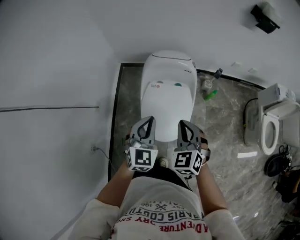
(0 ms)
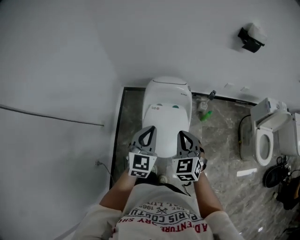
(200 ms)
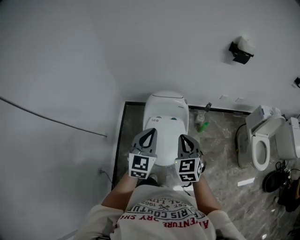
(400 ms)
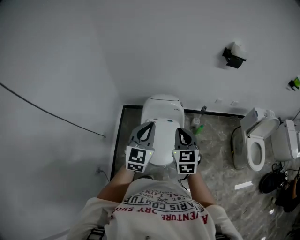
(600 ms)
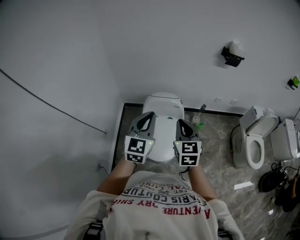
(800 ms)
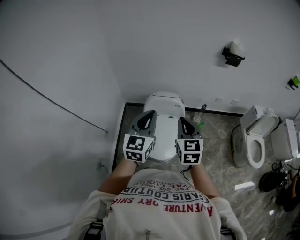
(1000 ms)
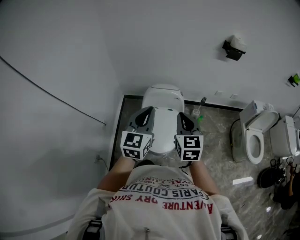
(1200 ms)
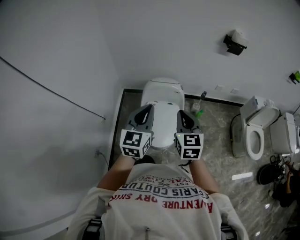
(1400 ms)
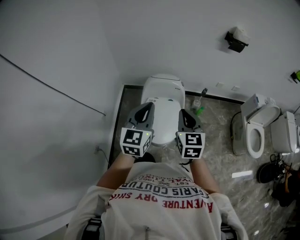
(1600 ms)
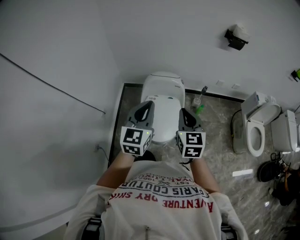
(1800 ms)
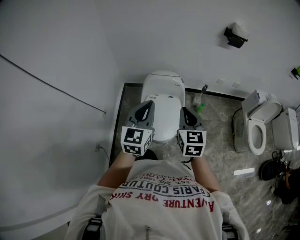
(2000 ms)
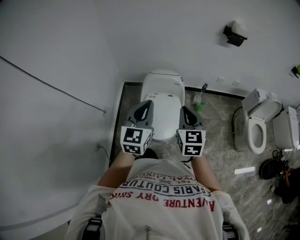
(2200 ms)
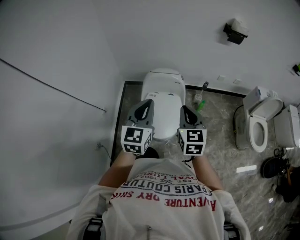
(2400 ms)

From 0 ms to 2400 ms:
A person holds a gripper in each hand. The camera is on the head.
From 0 ms to 1200 ms: Both grippers travel together upward, about 25 cm. The left gripper changes its angle by approximately 20 degrees; the right gripper rotates roughly 30 degrees.
From 1200 ms to 2400 ms: The right gripper ends up about 5 cm from where it was.

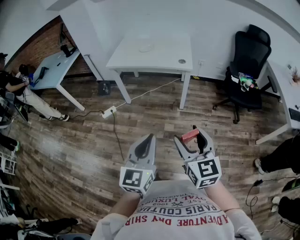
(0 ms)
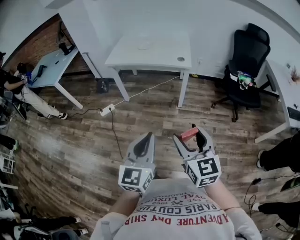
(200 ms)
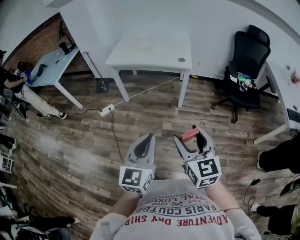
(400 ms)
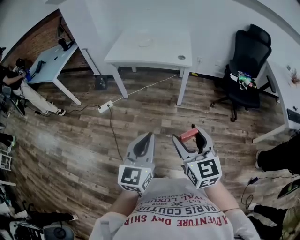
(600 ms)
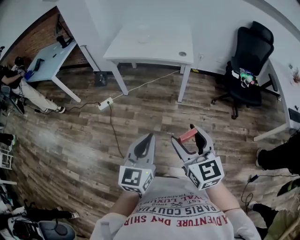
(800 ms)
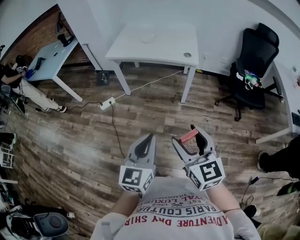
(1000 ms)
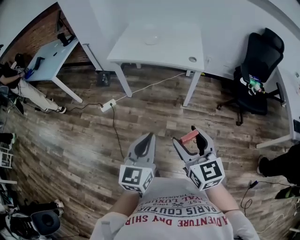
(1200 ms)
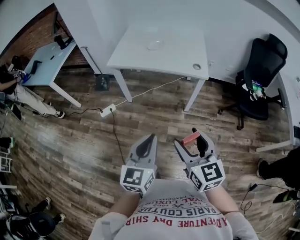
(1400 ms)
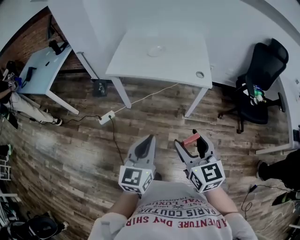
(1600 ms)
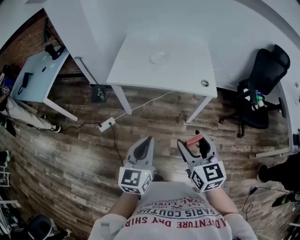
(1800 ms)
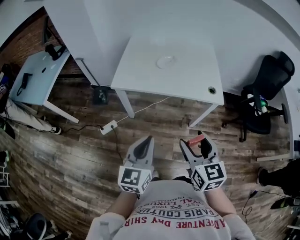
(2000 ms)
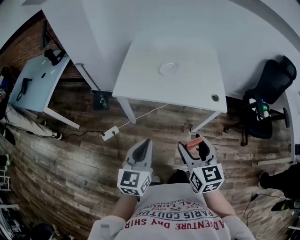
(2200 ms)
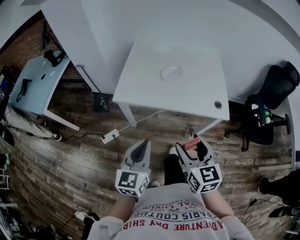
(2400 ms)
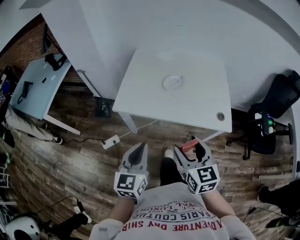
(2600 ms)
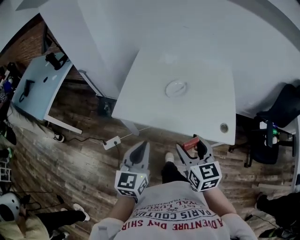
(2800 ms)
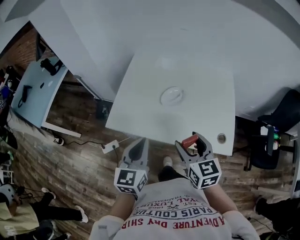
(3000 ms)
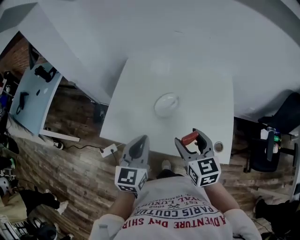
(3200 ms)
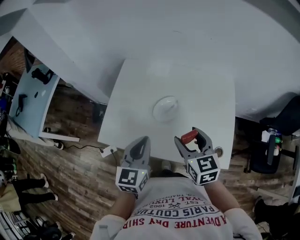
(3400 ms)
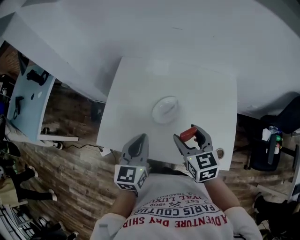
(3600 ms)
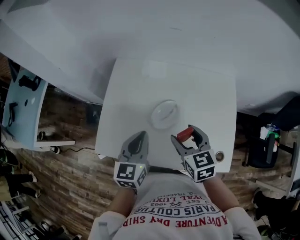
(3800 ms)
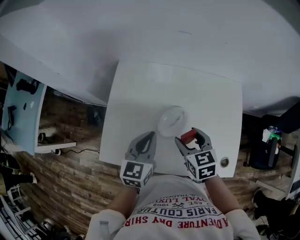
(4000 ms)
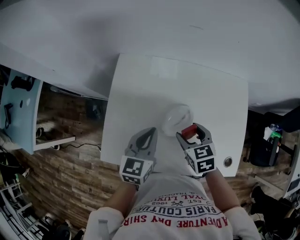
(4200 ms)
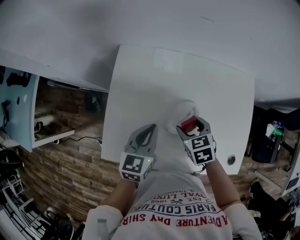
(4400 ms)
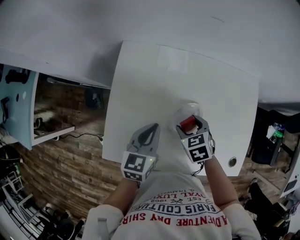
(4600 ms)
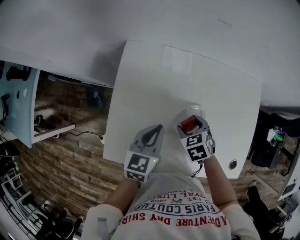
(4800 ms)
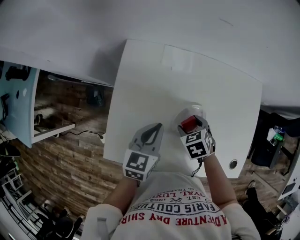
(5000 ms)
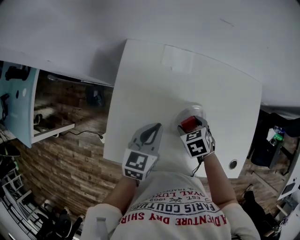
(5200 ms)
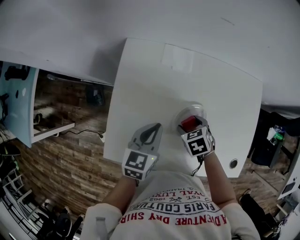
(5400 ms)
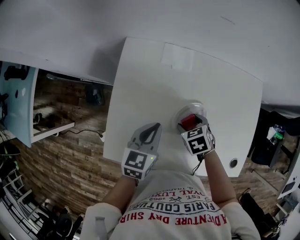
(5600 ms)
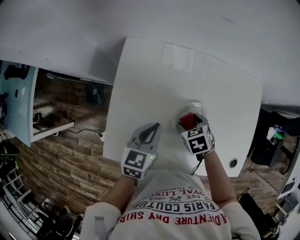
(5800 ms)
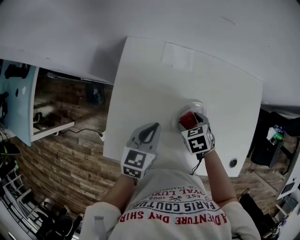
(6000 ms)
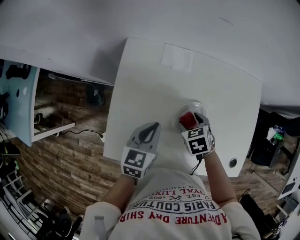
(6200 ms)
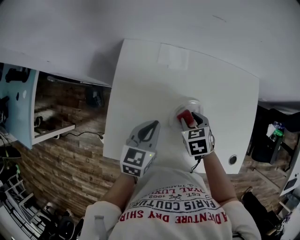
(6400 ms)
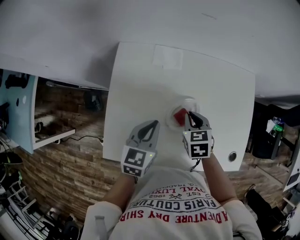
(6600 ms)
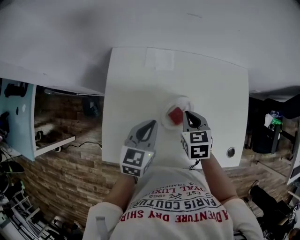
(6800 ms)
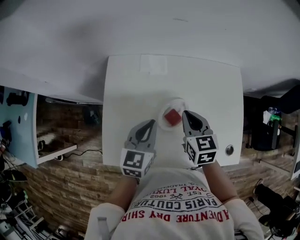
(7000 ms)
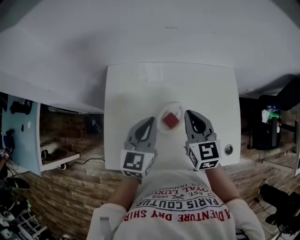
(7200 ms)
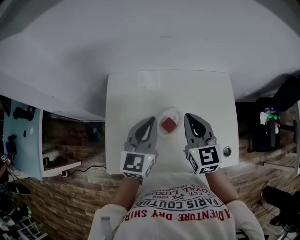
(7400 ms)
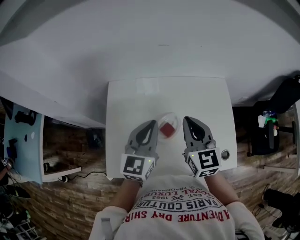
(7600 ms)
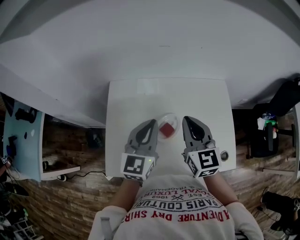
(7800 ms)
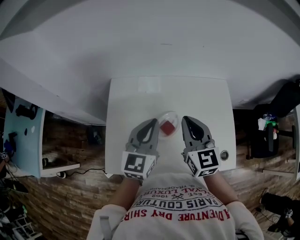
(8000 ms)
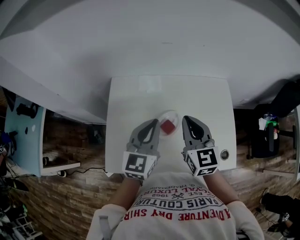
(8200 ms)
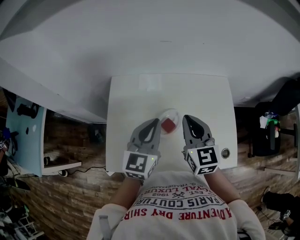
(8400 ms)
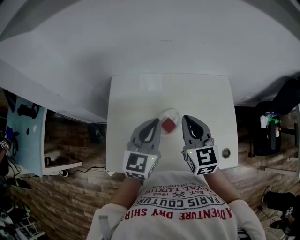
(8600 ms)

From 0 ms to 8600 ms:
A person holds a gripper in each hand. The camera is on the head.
From 0 ms to 1400 ms: The grippers both shift forward and to the left by some 20 cm.
From 1400 ms to 2800 ms: The pair of grippers is taken forward, roughly 50 cm.
From 2800 ms to 4400 ms: The left gripper travels forward by some 35 cm, and changes its angle by some 20 degrees. The right gripper shifts approximately 40 cm forward and downward, and tips its fingers downward by roughly 30 degrees.
From 4400 ms to 5800 ms: The right gripper shifts about 5 cm downward.
From 5800 ms to 7200 ms: The left gripper moves upward and to the right, some 15 cm, and rotates about 20 degrees. Meanwhile the right gripper heads upward, covering roughly 20 cm, tips its fingers upward by some 50 degrees, and closes up.
From 7200 ms to 8600 ms: Both grippers travel together upward, roughly 5 cm.

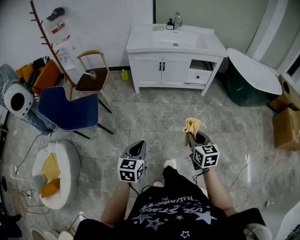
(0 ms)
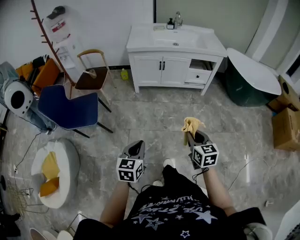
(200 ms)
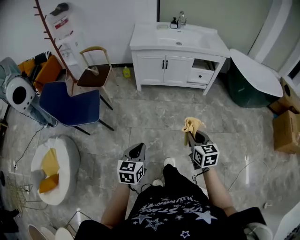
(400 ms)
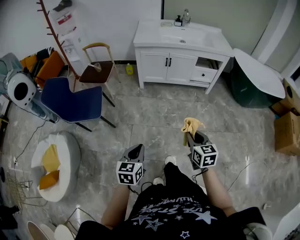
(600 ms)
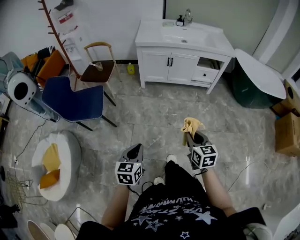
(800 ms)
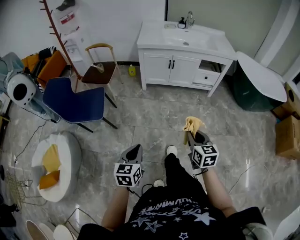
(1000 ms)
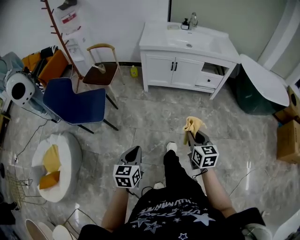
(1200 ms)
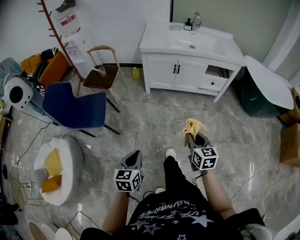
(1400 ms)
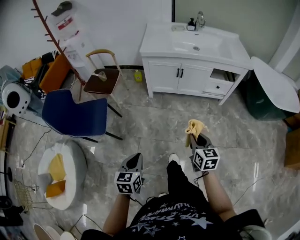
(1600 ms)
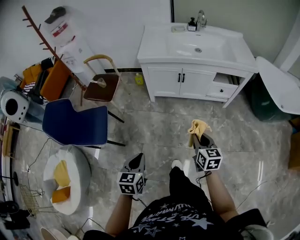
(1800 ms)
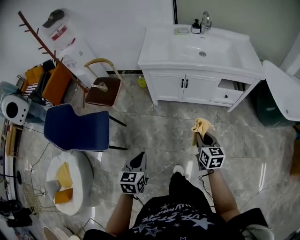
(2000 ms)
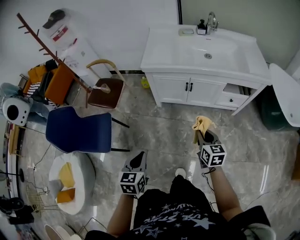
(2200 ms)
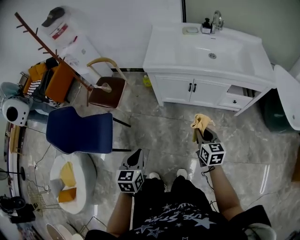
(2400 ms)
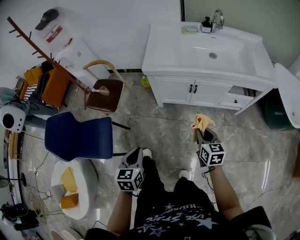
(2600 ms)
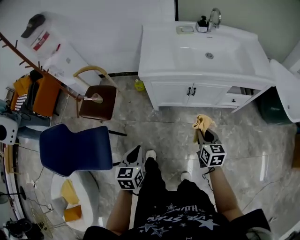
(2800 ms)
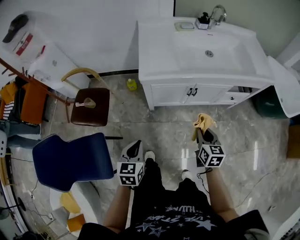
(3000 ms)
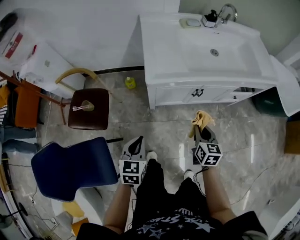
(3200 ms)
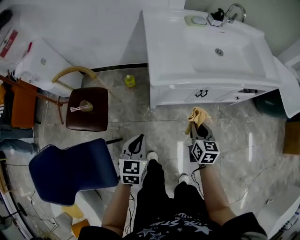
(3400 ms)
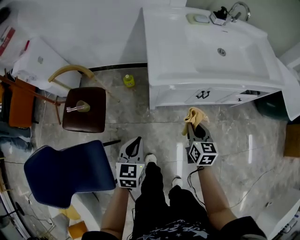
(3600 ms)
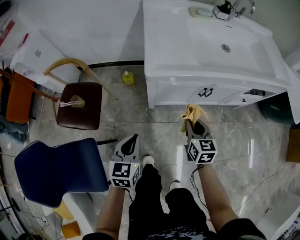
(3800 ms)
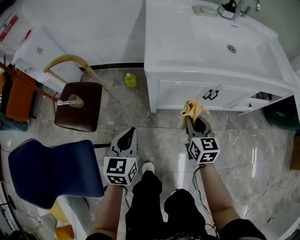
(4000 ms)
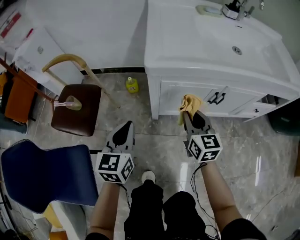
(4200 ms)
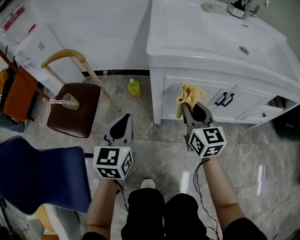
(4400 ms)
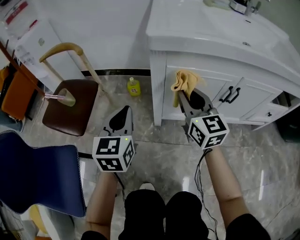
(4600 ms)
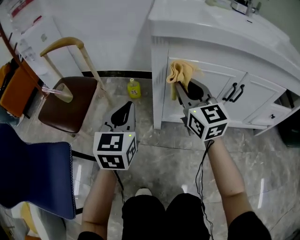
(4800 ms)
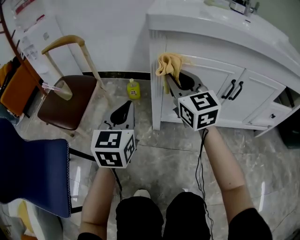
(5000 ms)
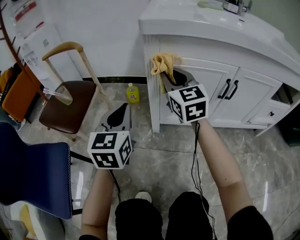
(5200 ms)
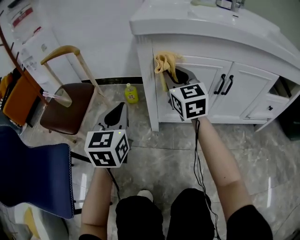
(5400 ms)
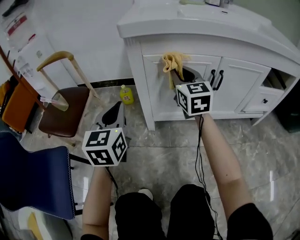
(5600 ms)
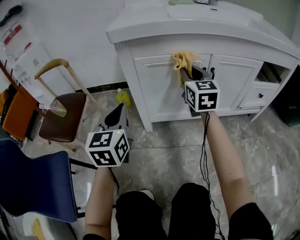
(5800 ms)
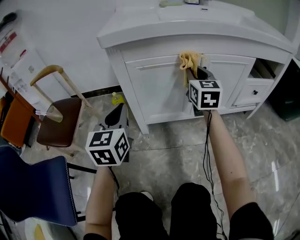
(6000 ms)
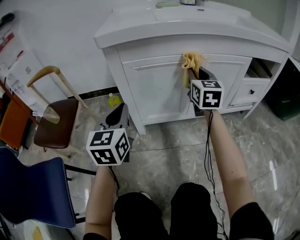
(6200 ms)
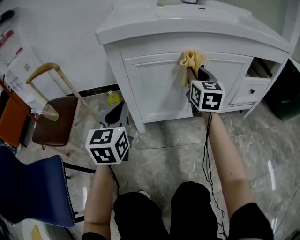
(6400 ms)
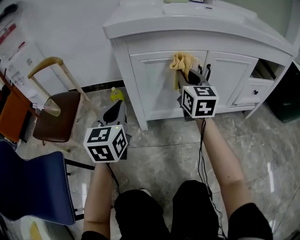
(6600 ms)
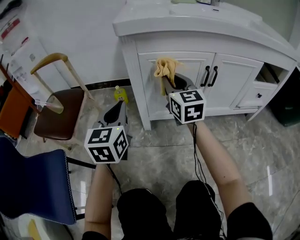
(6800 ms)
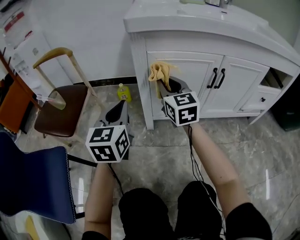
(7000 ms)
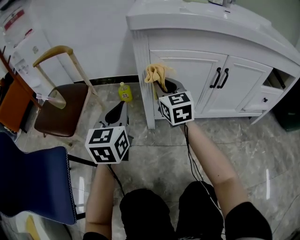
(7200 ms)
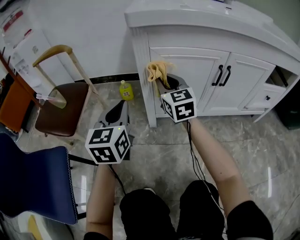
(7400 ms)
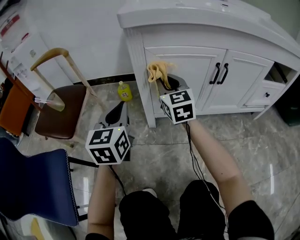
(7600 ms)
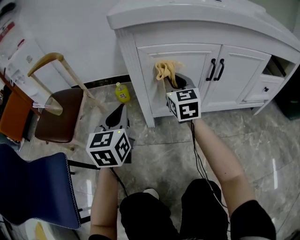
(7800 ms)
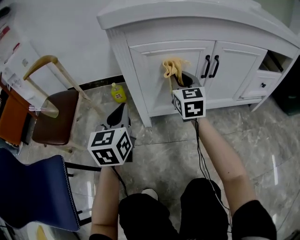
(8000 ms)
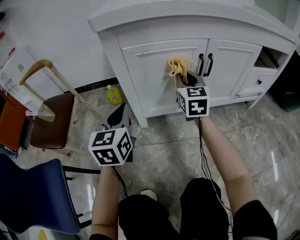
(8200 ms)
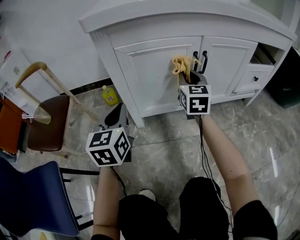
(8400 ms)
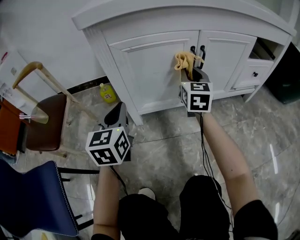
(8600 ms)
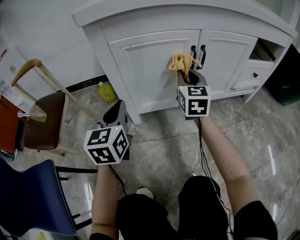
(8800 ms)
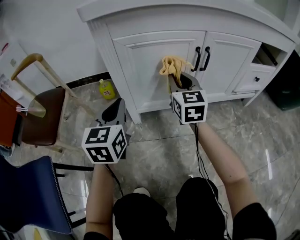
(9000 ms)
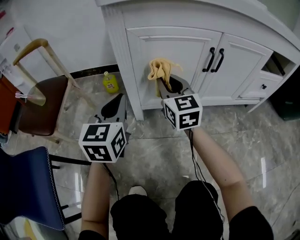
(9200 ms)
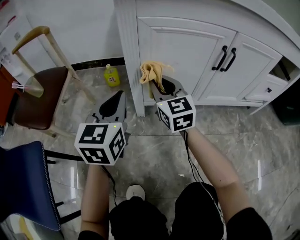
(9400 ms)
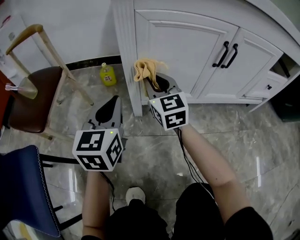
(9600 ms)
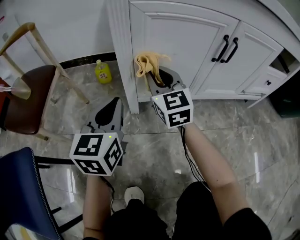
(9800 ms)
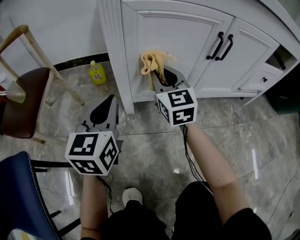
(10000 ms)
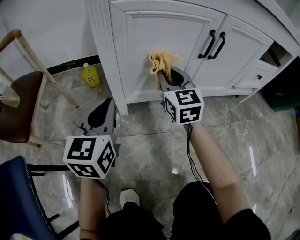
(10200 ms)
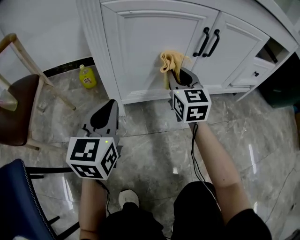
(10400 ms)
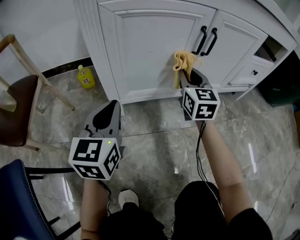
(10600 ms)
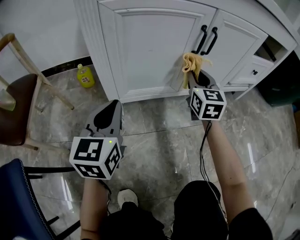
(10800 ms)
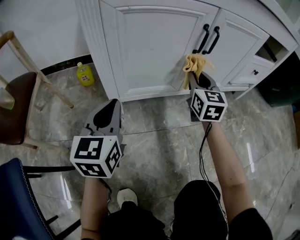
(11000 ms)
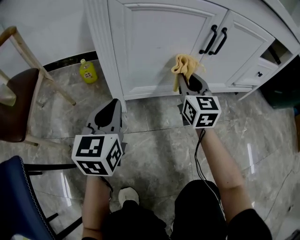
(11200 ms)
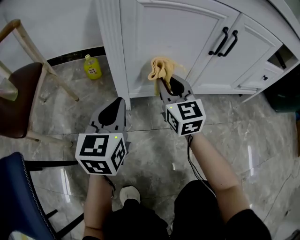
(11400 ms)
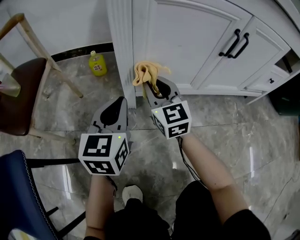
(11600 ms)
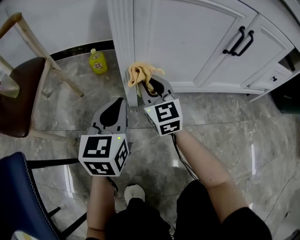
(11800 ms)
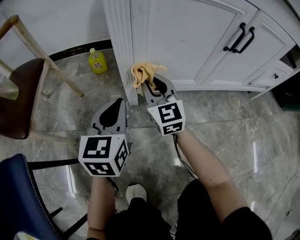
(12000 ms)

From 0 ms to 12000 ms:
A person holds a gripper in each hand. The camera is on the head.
From 0 ms to 1600 ms: The right gripper travels forward by about 20 cm. The left gripper is displaced forward and to the left by about 15 cm.
From 1600 ms to 3000 ms: The grippers both shift forward by some 40 cm.
From 3000 ms to 4400 ms: The grippers both shift forward, downward and to the left by roughly 30 cm. The right gripper rotates approximately 30 degrees; the left gripper turns by about 20 degrees.
From 4400 ms to 6000 ms: The left gripper shifts about 10 cm to the right. Meanwhile the right gripper moves to the right, approximately 15 cm, and turns by about 20 degrees.
From 6000 ms to 7600 ms: The left gripper goes roughly 5 cm to the left, while the right gripper heads to the left, covering some 20 cm.
From 7600 ms to 9000 ms: The right gripper moves to the right, approximately 15 cm. The left gripper shifts roughly 5 cm to the right.
From 9000 ms to 10400 ms: The grippers both shift downward by about 10 cm. The right gripper travels to the left and back again, approximately 15 cm each way.
From 10400 ms to 12000 ms: The left gripper moves downward, roughly 5 cm; the right gripper travels to the left and downward by about 20 cm.
